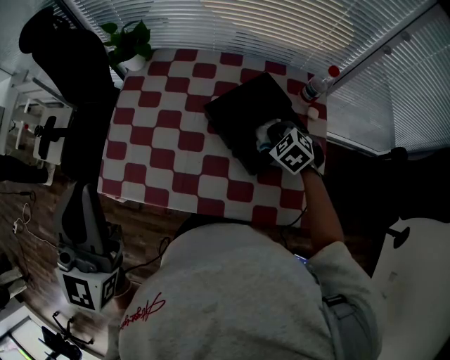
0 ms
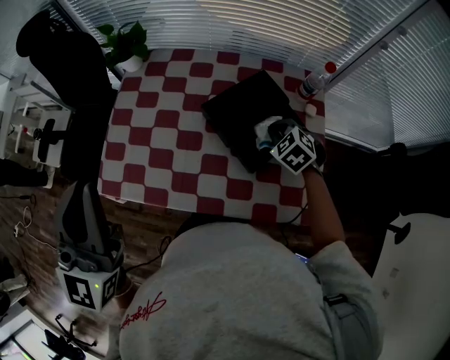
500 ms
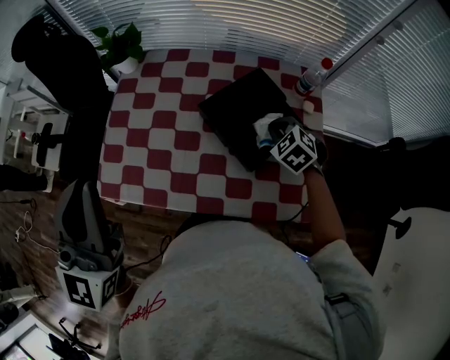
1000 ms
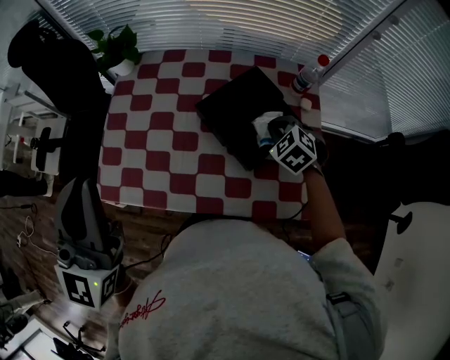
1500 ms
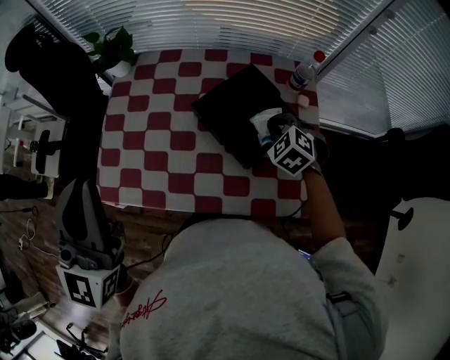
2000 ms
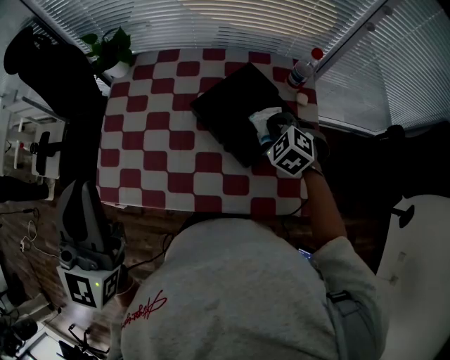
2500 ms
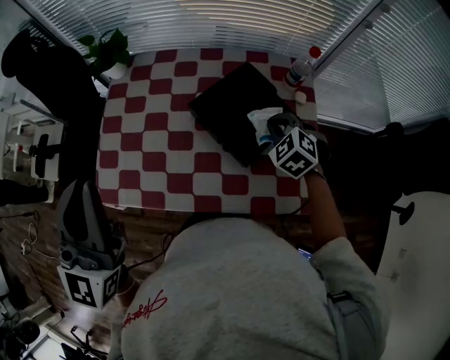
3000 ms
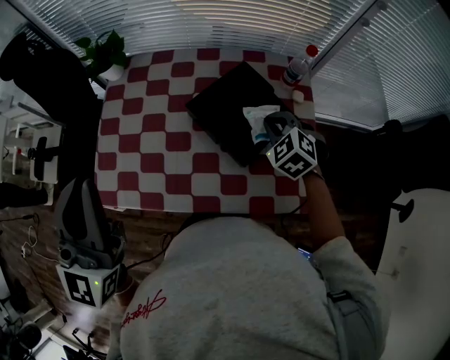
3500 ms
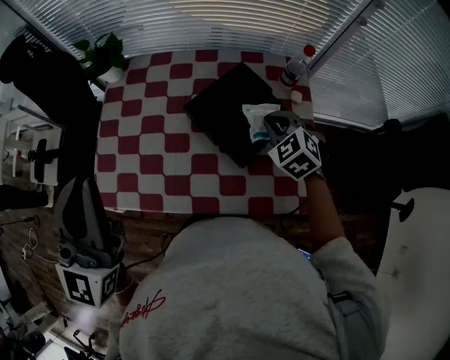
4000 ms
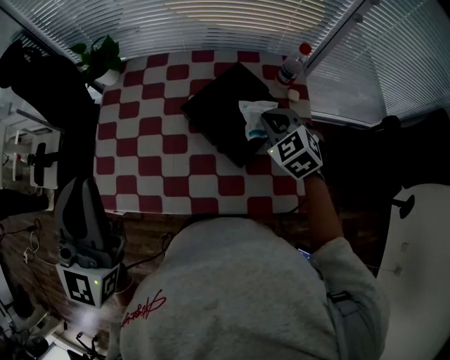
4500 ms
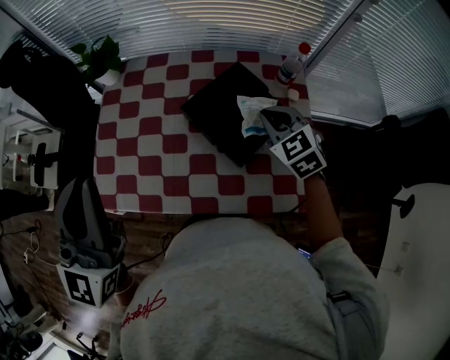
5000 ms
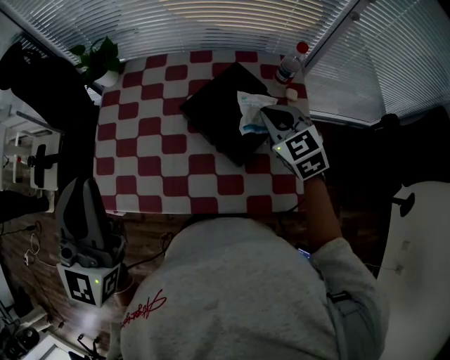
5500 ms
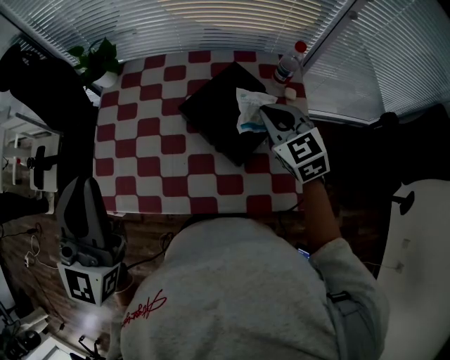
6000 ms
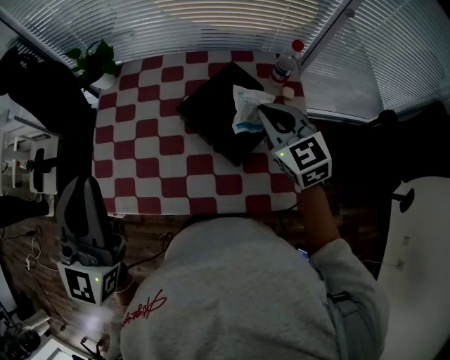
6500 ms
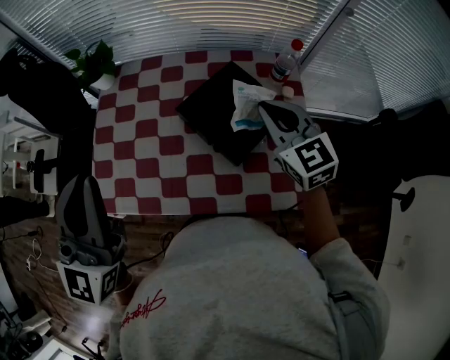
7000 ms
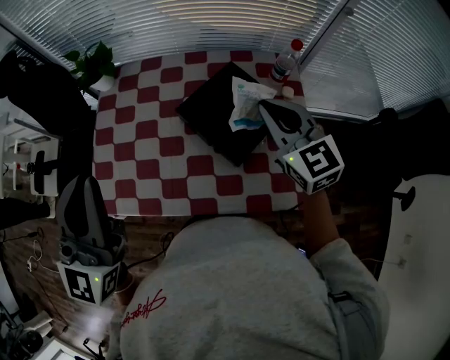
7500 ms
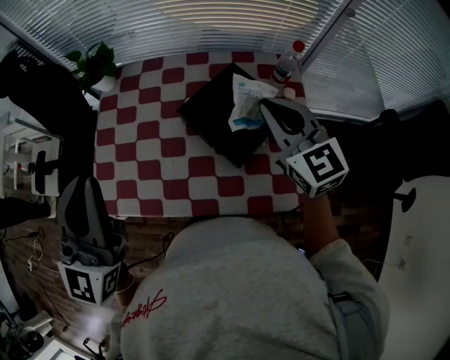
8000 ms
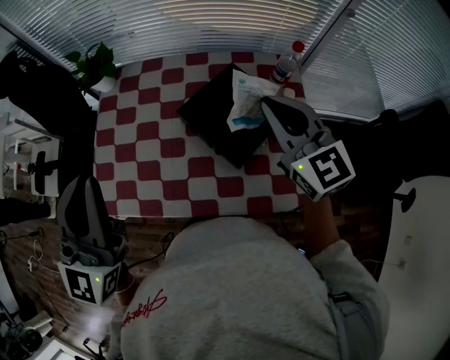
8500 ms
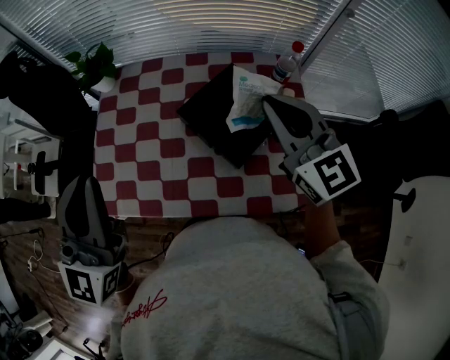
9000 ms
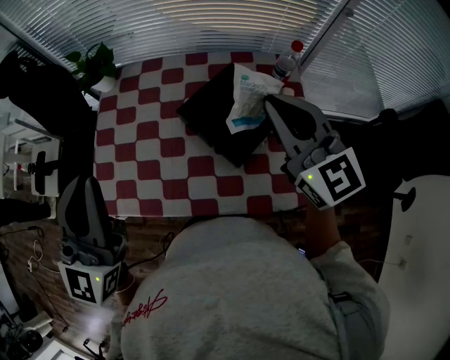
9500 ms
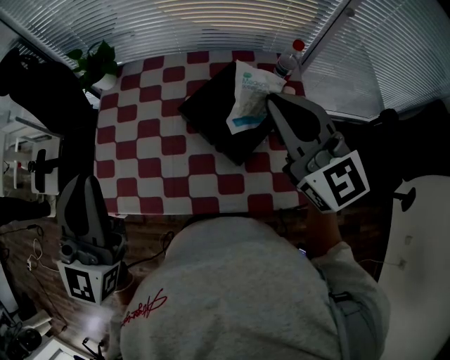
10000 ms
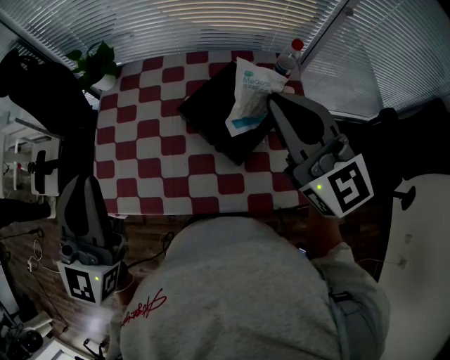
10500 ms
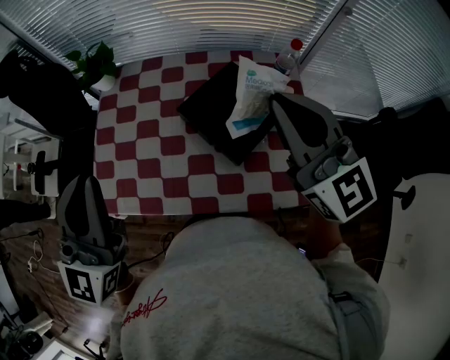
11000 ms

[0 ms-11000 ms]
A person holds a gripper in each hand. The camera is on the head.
0 ms to 2000 ms: The grippers make only small movements.
2000 ms to 3500 ms: The grippers make only small movements.
3500 ms to 5500 ms: The right gripper goes approximately 5 cm upward, and turns by some 30 degrees.
5500 ms to 7500 ms: The right gripper heads upward, covering about 10 cm.
7500 ms to 9000 ms: The right gripper shifts roughly 5 cm upward.
9000 ms to 11000 ms: The right gripper heads upward, covering roughly 5 cm.

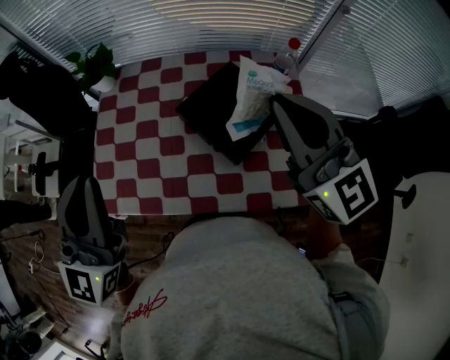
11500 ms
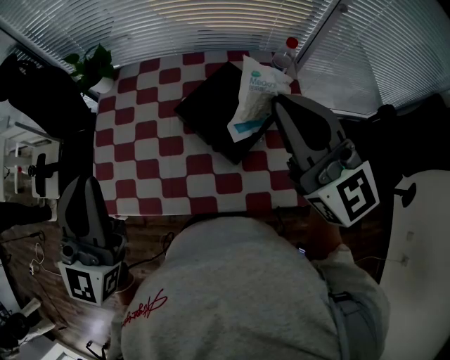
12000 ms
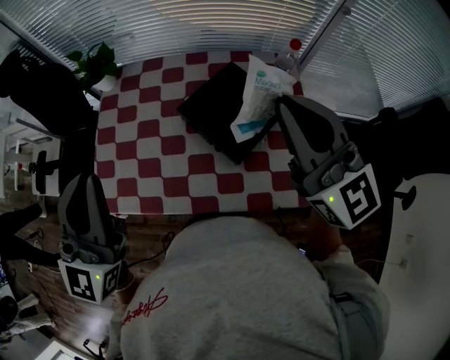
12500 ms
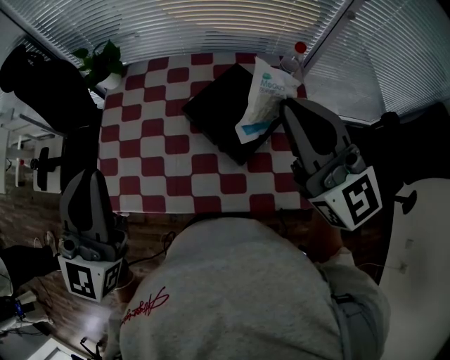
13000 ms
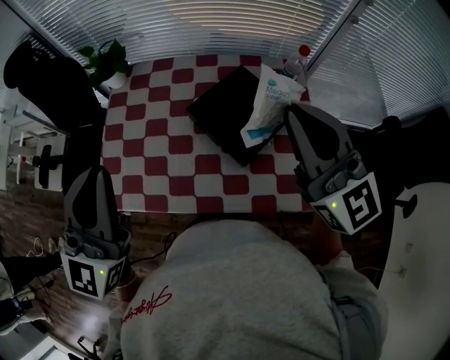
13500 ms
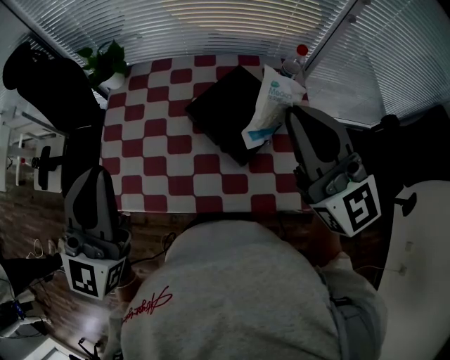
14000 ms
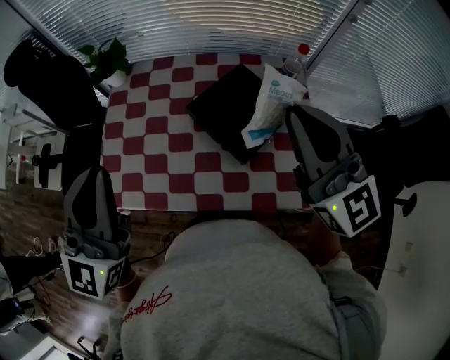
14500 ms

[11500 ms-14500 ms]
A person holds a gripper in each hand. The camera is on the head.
11500 ms to 13000 ms: Both grippers stay put.
13000 ms to 14500 ms: There are only small adjustments of the grippers.

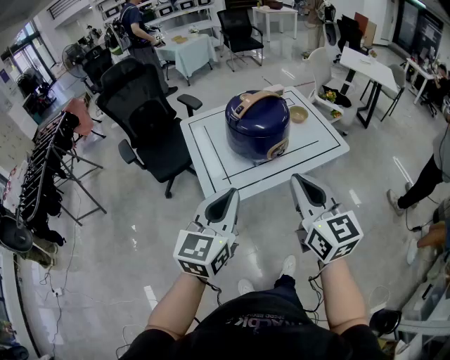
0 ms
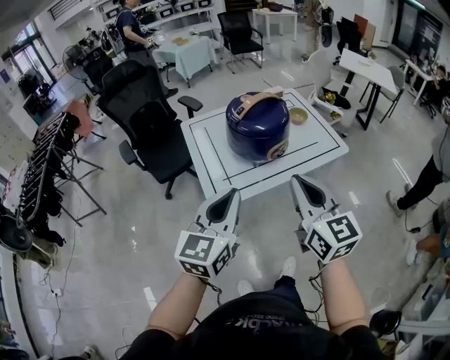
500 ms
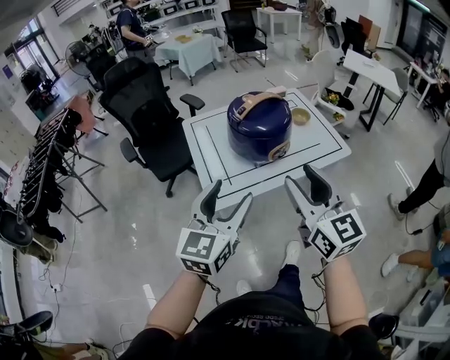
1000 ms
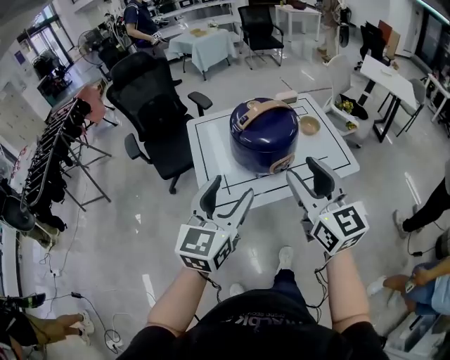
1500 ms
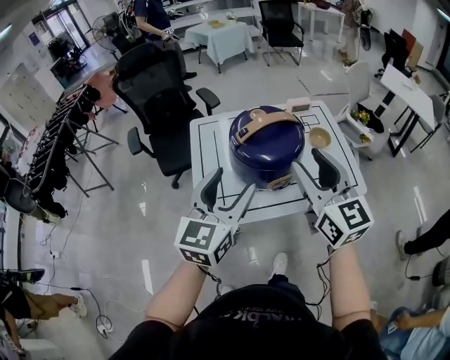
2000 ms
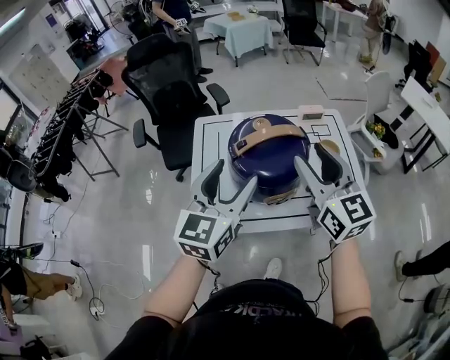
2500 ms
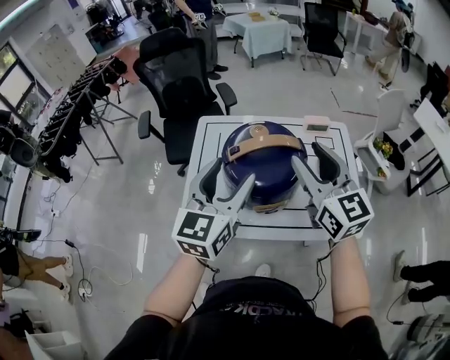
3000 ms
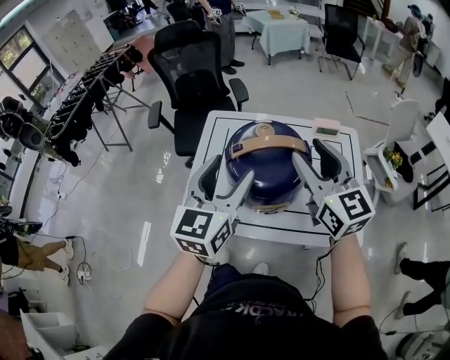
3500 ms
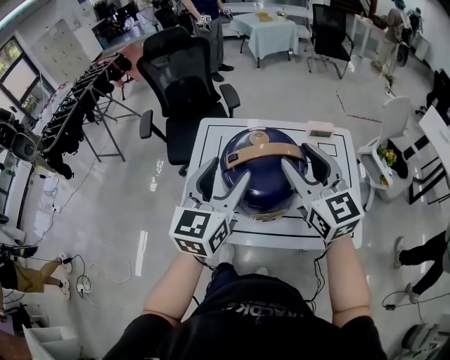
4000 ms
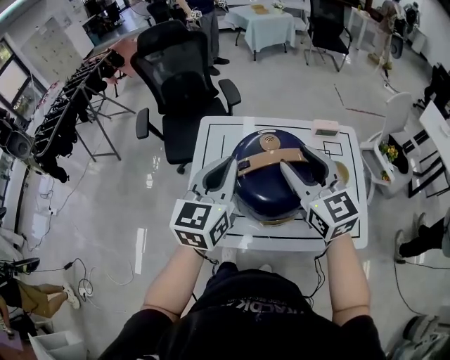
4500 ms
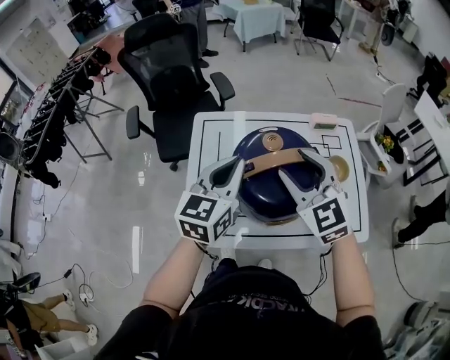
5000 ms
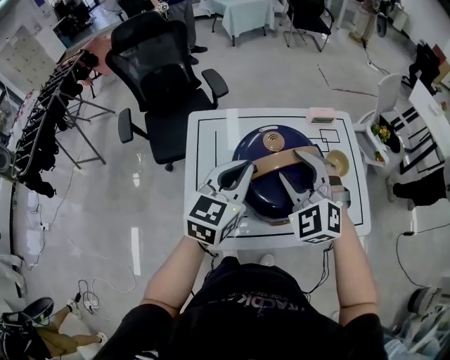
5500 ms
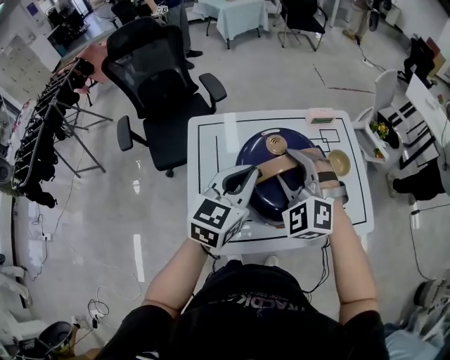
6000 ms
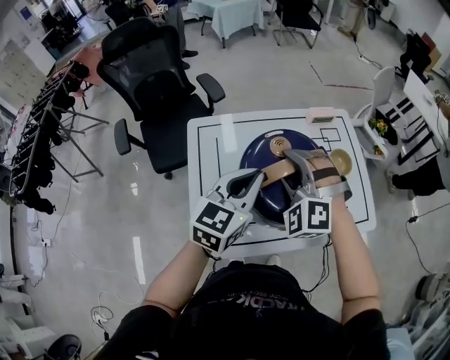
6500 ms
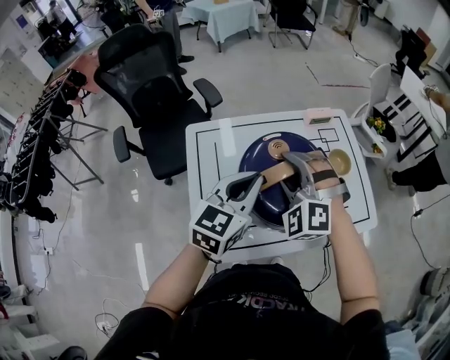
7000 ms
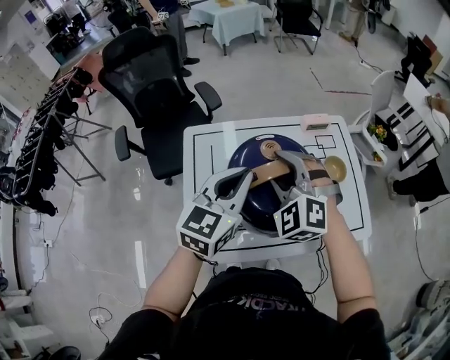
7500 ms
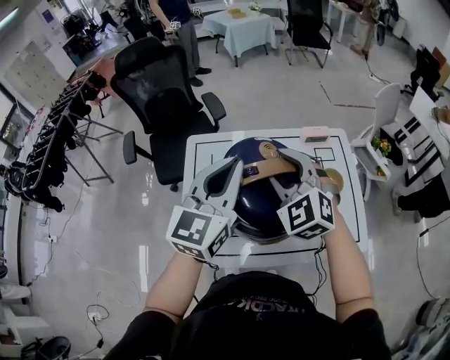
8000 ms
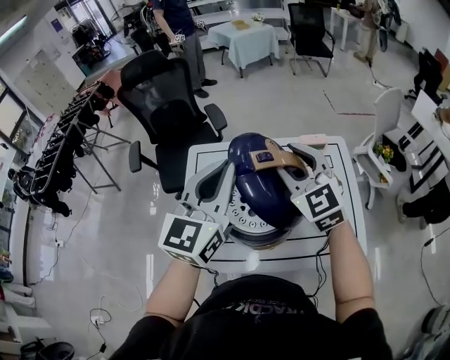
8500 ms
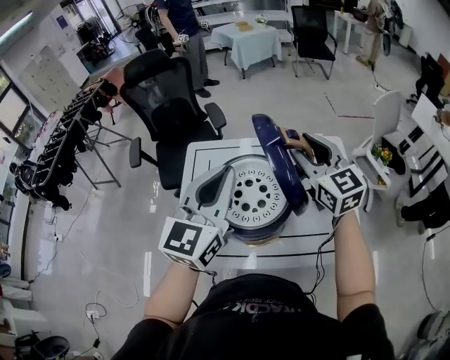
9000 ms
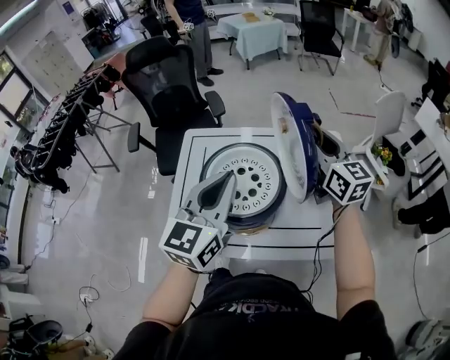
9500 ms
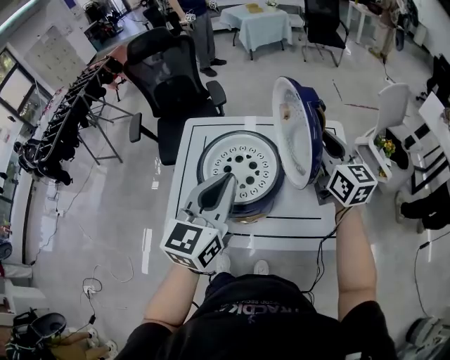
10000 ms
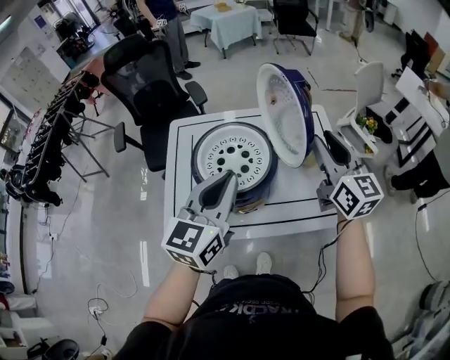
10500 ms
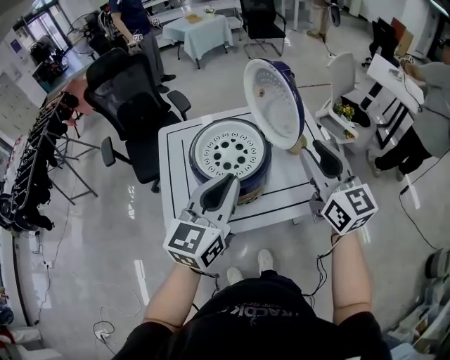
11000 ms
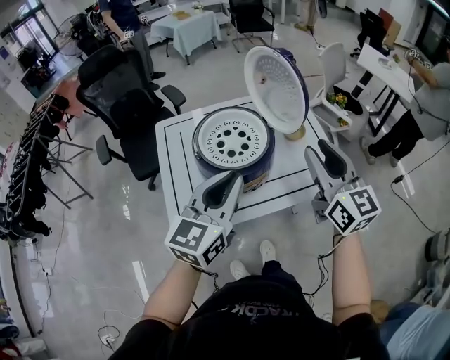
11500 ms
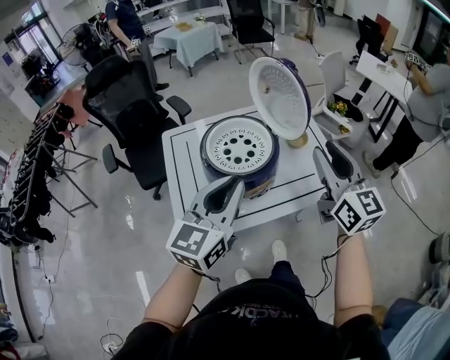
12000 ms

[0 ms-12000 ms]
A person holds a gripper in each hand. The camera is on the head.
0 ms to 2000 ms: Both grippers move forward, about 20 cm. The left gripper opens up. The right gripper opens.
2000 ms to 4000 ms: The right gripper is displaced forward by roughly 15 cm; the left gripper shifts roughly 15 cm forward and to the right.
4000 ms to 6000 ms: The left gripper heads forward and downward, covering about 10 cm, swivels some 30 degrees, and closes, while the right gripper is displaced downward, to the left and forward by about 15 cm, and rolls counterclockwise, seen from behind, by about 50 degrees.
6000 ms to 8000 ms: The right gripper travels upward by about 5 cm. The left gripper moves upward, some 10 cm.
8000 ms to 10000 ms: The left gripper travels backward and to the right by about 10 cm. The right gripper moves to the right, roughly 20 cm, and rotates around the line of its fingers by roughly 50 degrees, clockwise from behind.
10000 ms to 12000 ms: The left gripper moves backward, some 10 cm, and turns by some 20 degrees; the right gripper moves backward, roughly 25 cm, and swivels approximately 20 degrees.

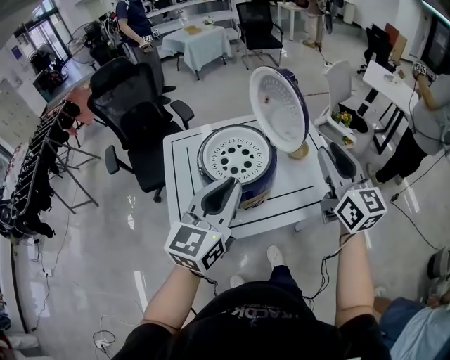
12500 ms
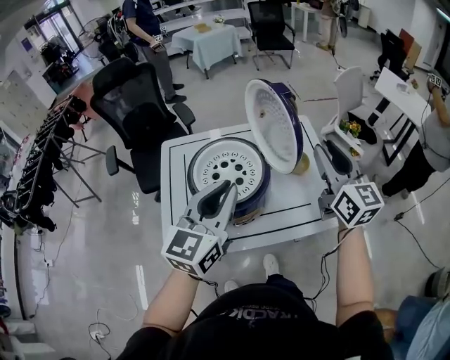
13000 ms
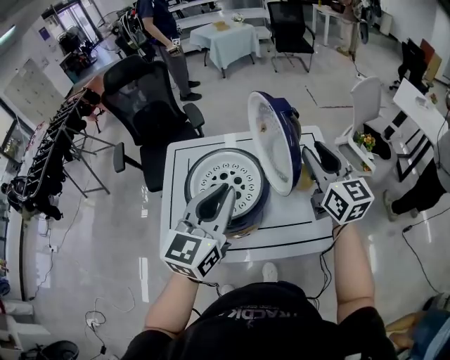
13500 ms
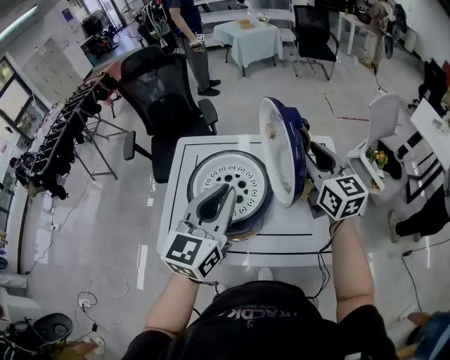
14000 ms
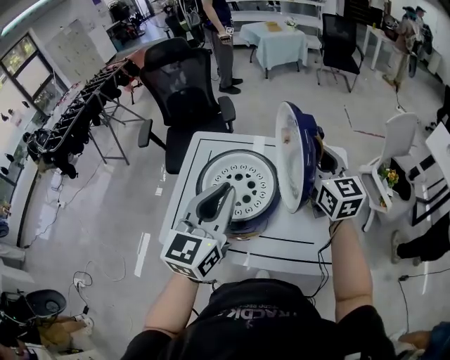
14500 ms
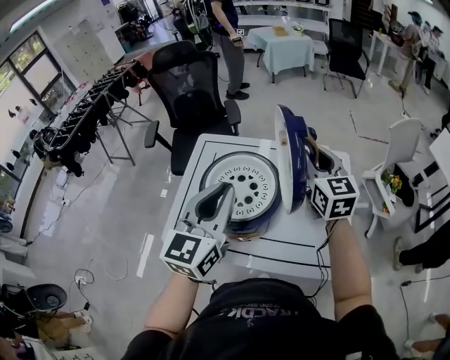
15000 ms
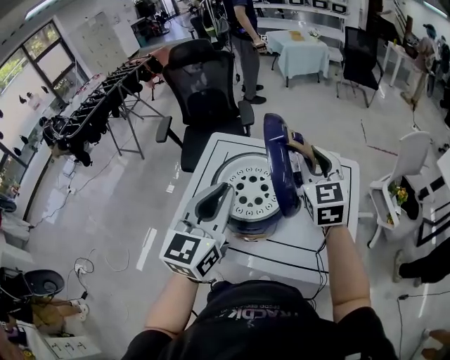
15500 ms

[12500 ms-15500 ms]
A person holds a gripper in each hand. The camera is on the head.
12500 ms to 14000 ms: The left gripper is displaced forward by roughly 10 cm; the right gripper shifts some 20 cm forward, and turns by about 20 degrees.
14000 ms to 15500 ms: The left gripper heads to the left, covering roughly 5 cm, while the right gripper travels to the left by approximately 10 cm, and turns by roughly 20 degrees.
